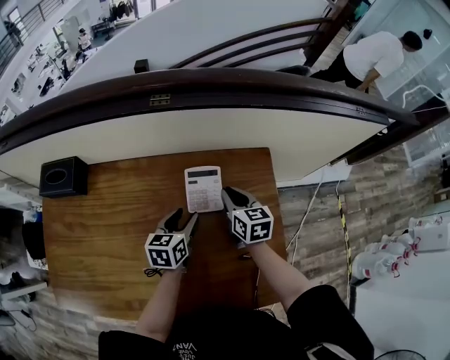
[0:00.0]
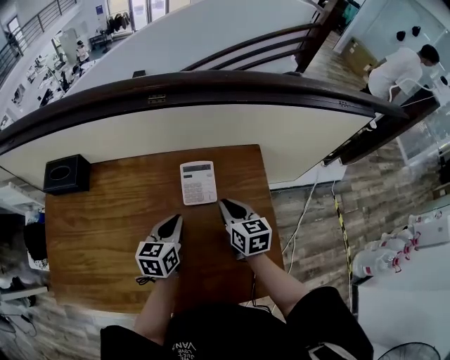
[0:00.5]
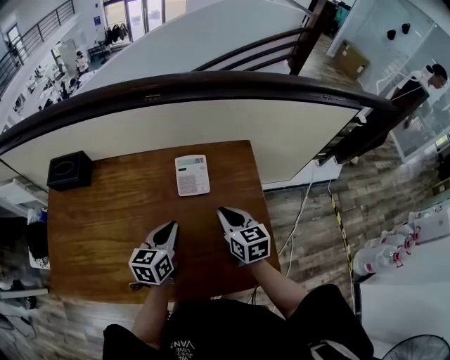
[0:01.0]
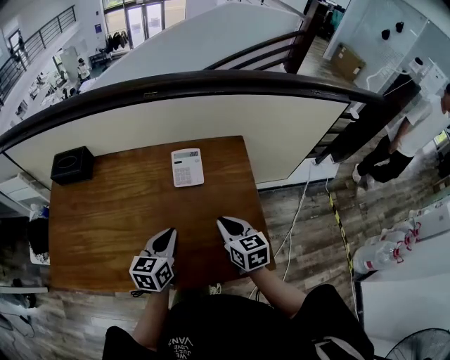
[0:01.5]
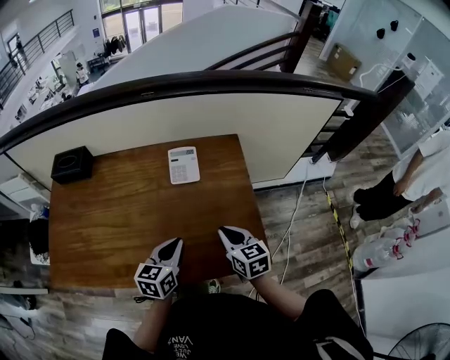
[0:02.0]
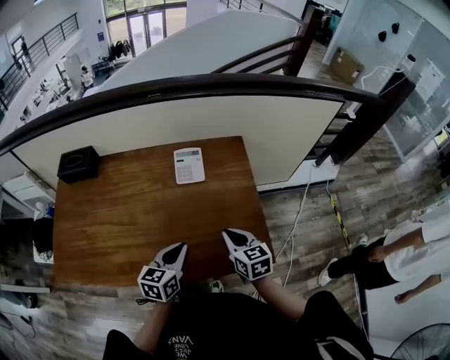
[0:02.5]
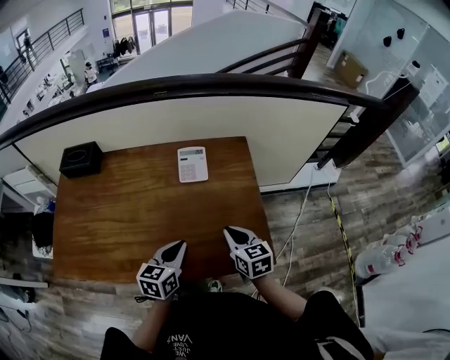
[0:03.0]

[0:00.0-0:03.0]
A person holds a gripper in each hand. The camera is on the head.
0:00.0 to 0:01.5: The left gripper moves backward and upward, approximately 20 cm, and closes up; the right gripper shifts some 20 cm backward.
0:01.5 to 0:03.0: Both grippers travel together backward, about 5 cm.

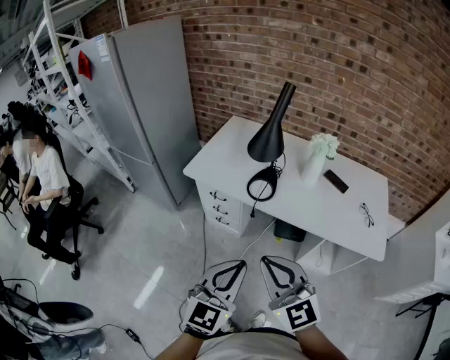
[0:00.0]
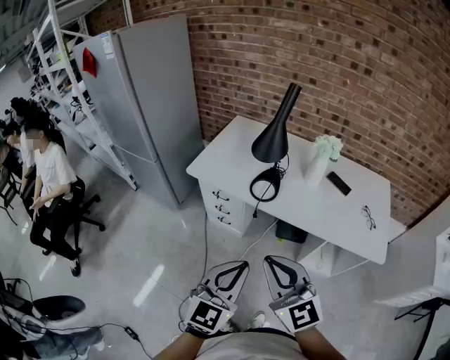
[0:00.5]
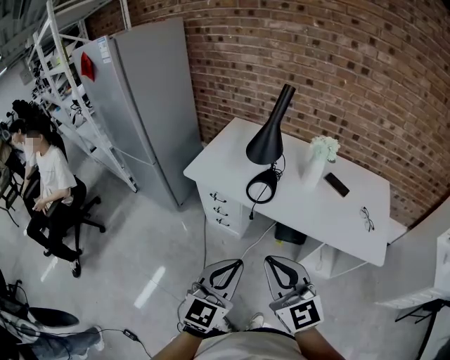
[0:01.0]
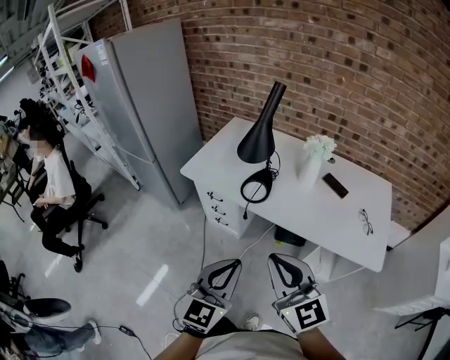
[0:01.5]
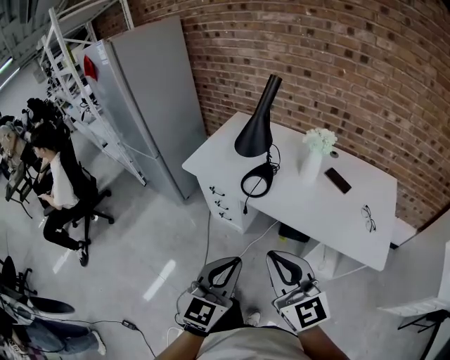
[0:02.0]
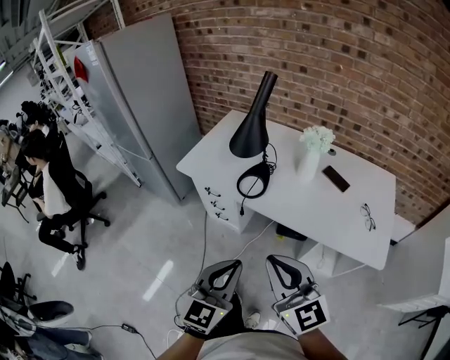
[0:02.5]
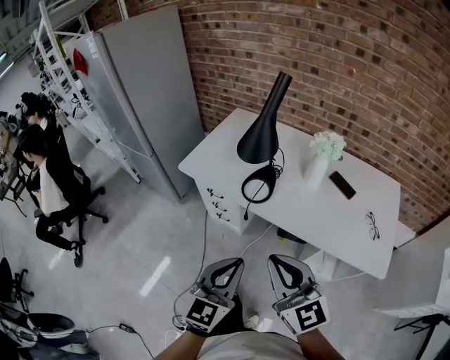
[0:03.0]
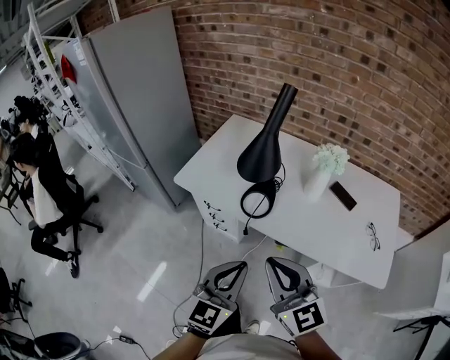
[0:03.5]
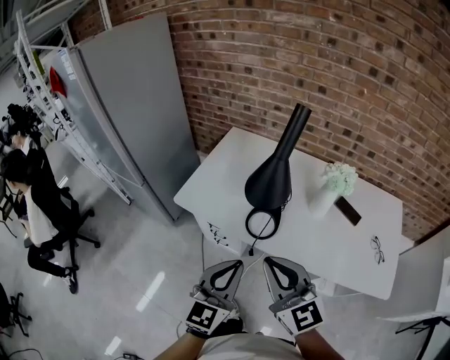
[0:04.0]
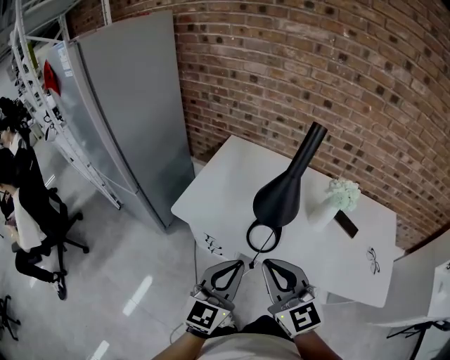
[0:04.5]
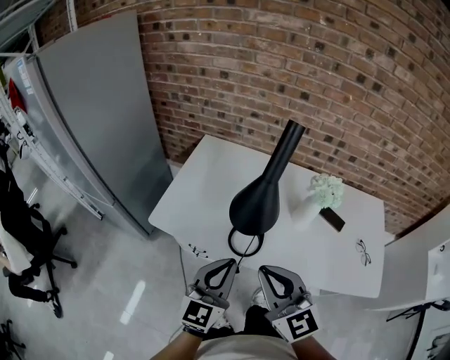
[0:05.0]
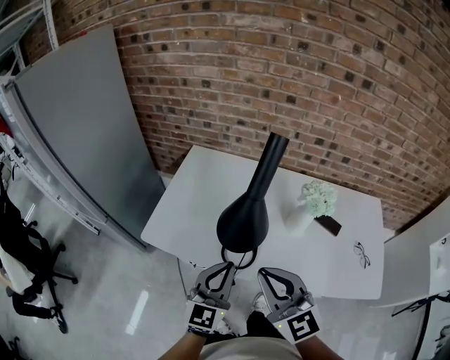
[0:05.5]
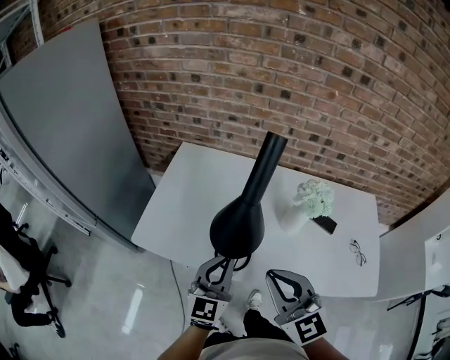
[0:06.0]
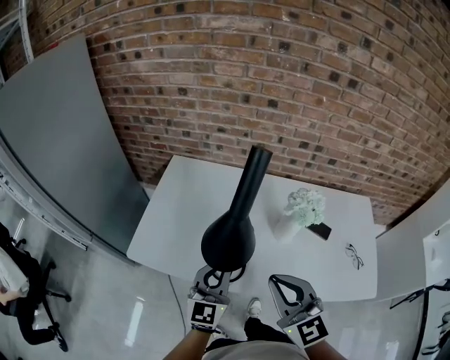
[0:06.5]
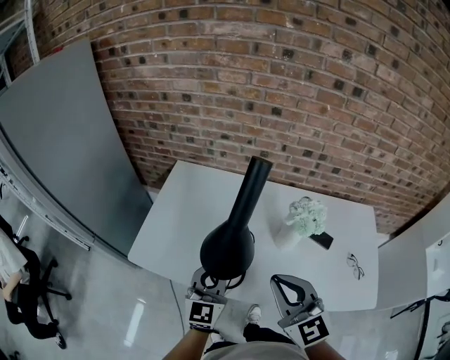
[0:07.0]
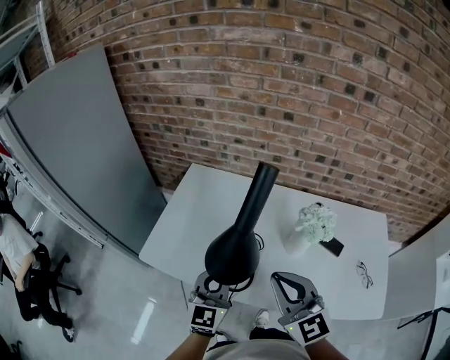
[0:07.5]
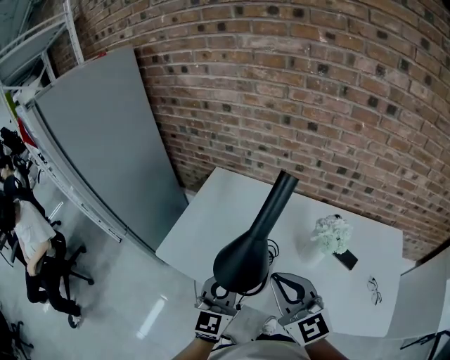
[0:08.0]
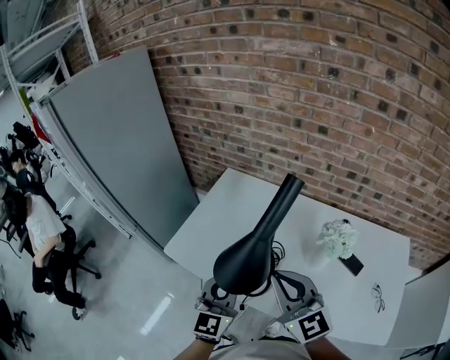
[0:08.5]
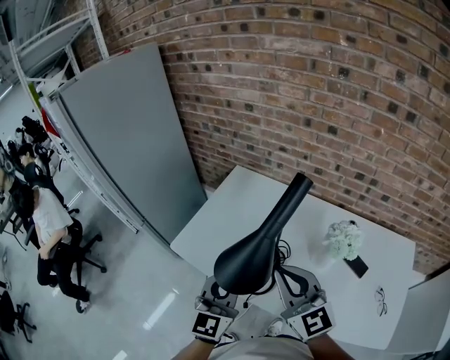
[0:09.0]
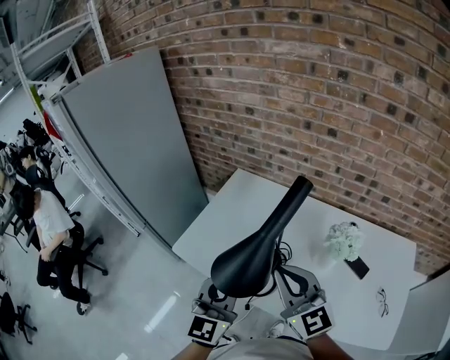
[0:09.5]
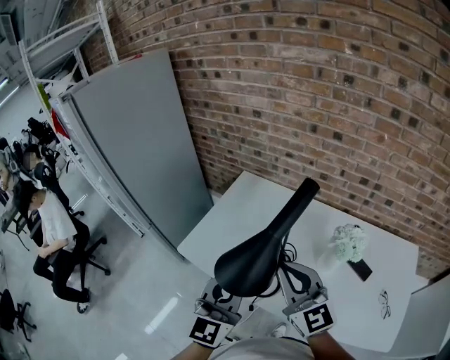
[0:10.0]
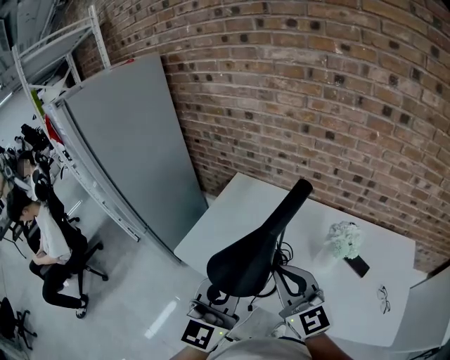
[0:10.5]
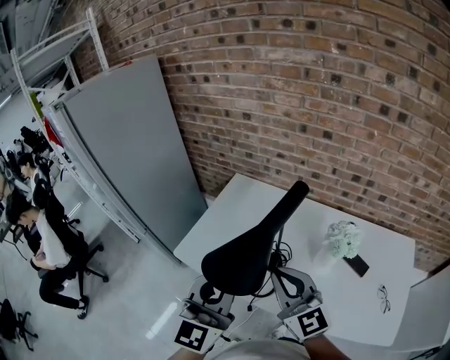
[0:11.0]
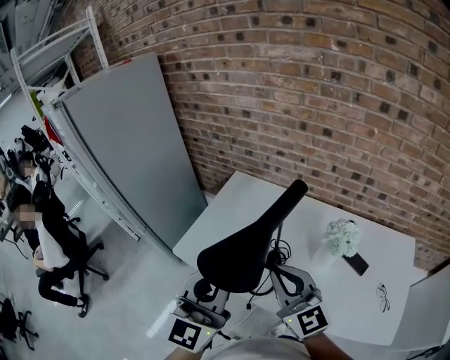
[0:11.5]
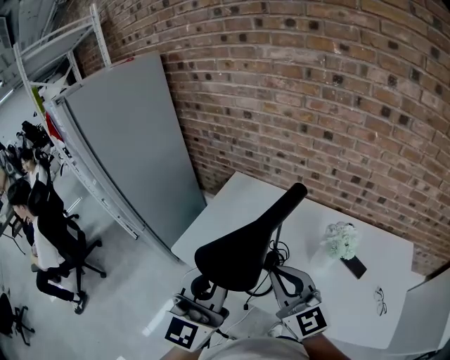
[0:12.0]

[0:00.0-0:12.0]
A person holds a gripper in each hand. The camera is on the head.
0:00.0 to 0:02.0: Both grippers move to the right, roughly 10 cm.
0:02.0 to 0:04.0: Both grippers move forward, some 20 cm.
0:04.0 to 0:06.0: The right gripper heads forward, covering roughly 10 cm. Meanwhile the left gripper moves forward, approximately 20 cm.
0:06.0 to 0:08.0: The right gripper heads forward, covering approximately 5 cm.
0:08.0 to 0:10.0: The left gripper shifts about 10 cm upward.
0:10.0 to 0:12.0: The left gripper shifts some 10 cm upward.

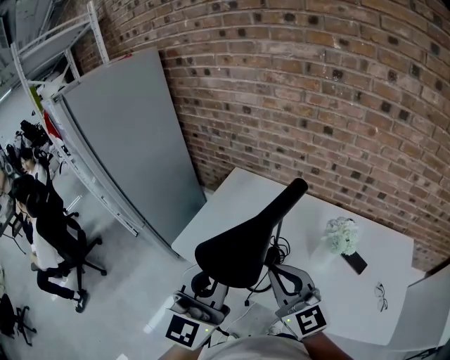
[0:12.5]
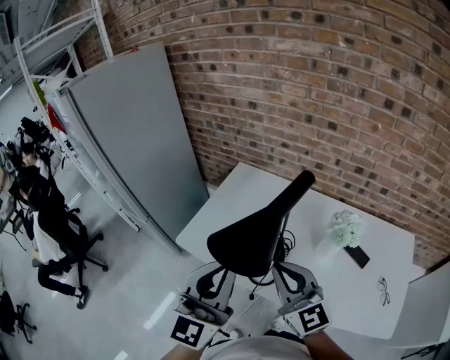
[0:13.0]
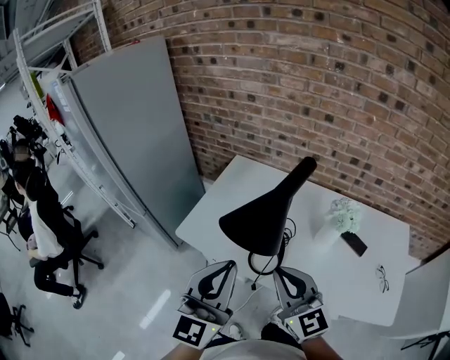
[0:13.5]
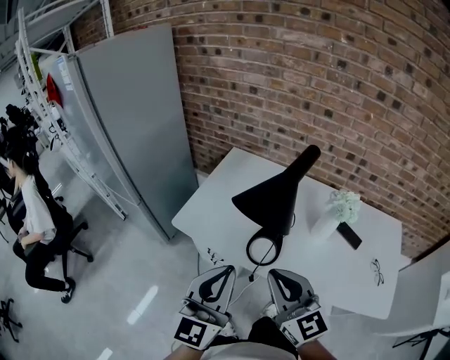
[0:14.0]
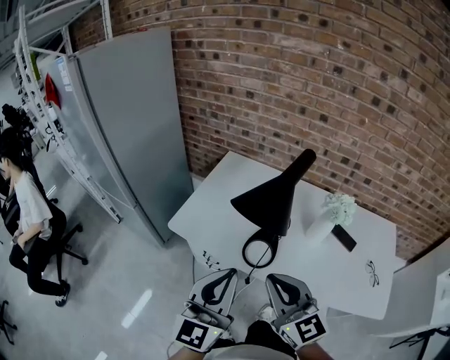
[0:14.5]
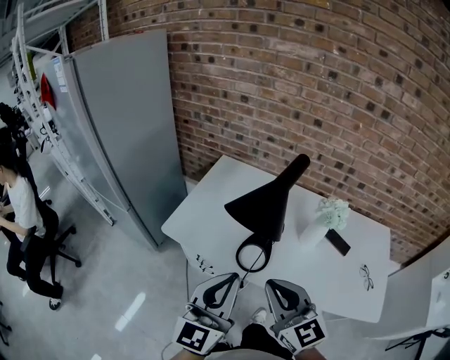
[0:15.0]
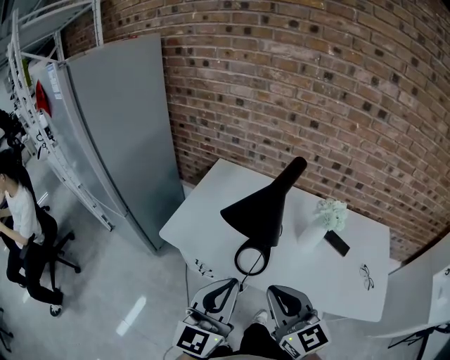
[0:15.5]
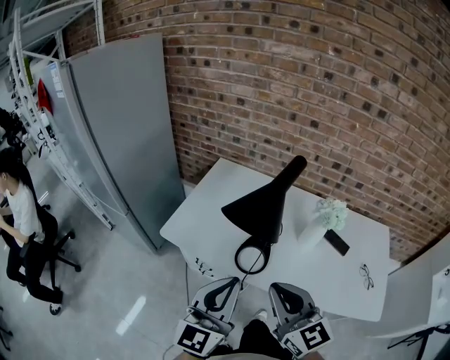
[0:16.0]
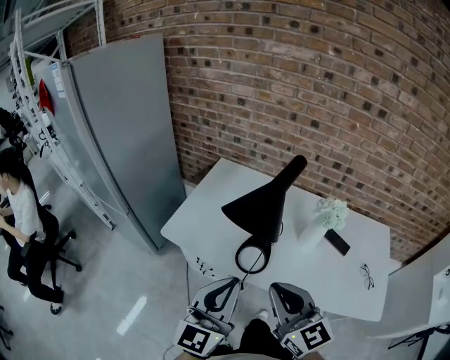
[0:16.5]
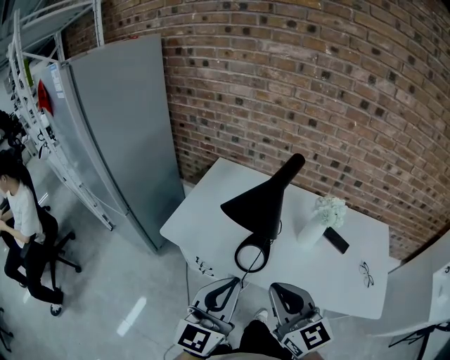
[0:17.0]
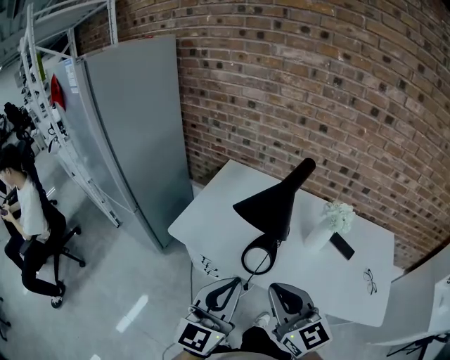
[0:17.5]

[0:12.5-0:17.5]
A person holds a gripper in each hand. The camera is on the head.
0:12.5 to 0:15.0: The left gripper shifts some 15 cm backward and downward. The right gripper heads backward, covering approximately 10 cm.
0:15.0 to 0:17.5: The grippers move only a little.

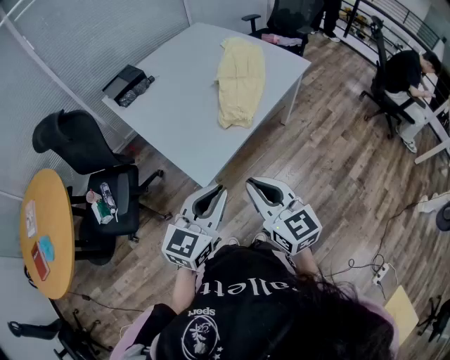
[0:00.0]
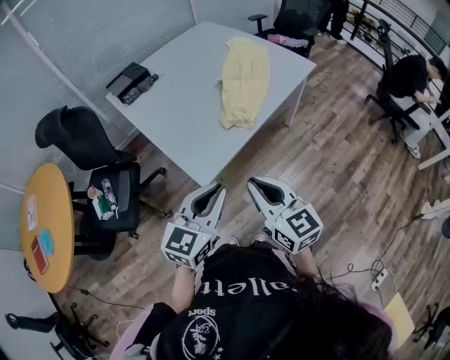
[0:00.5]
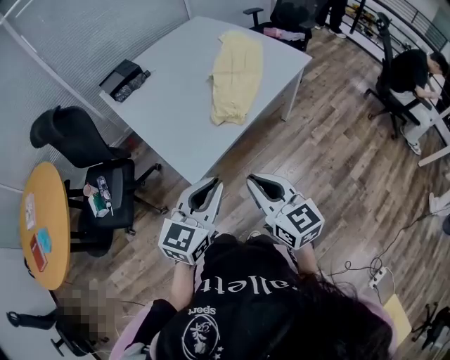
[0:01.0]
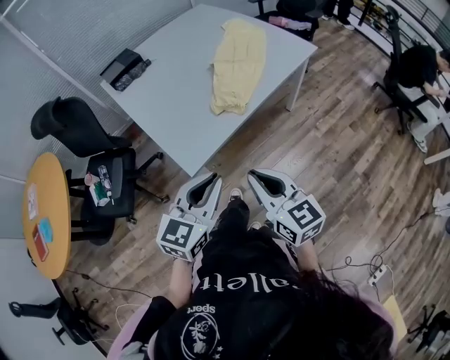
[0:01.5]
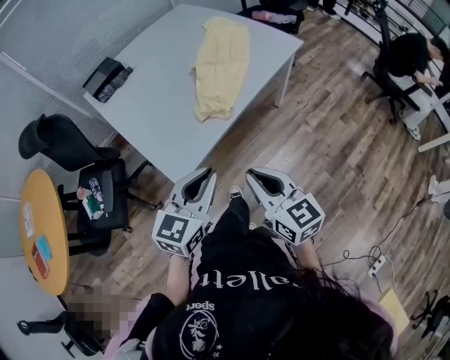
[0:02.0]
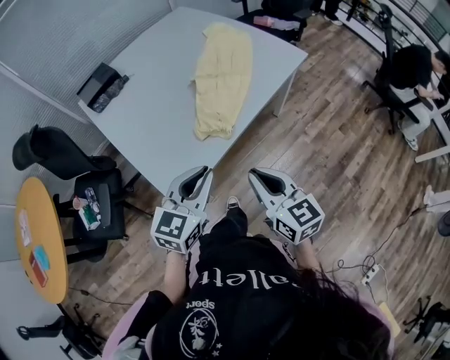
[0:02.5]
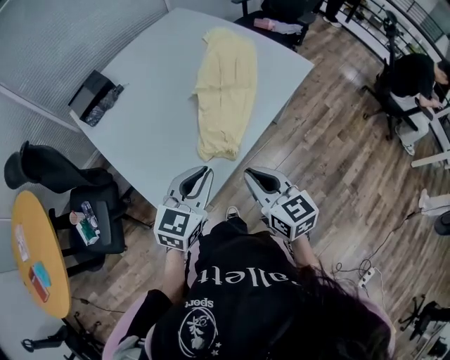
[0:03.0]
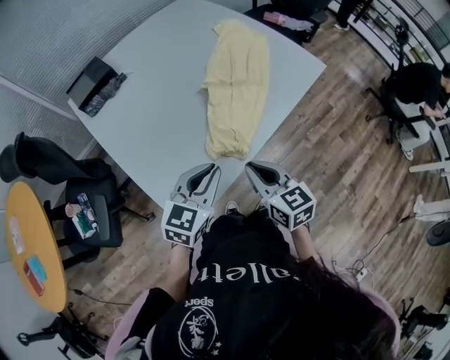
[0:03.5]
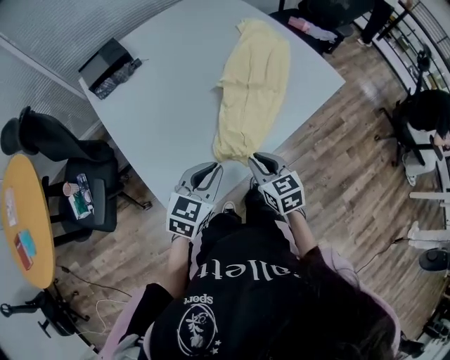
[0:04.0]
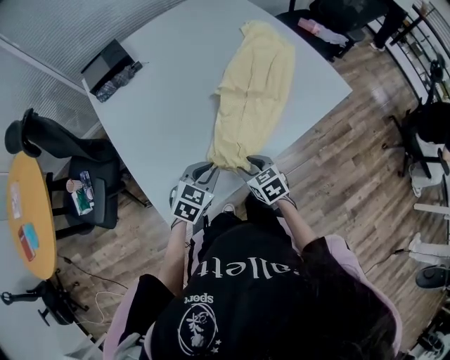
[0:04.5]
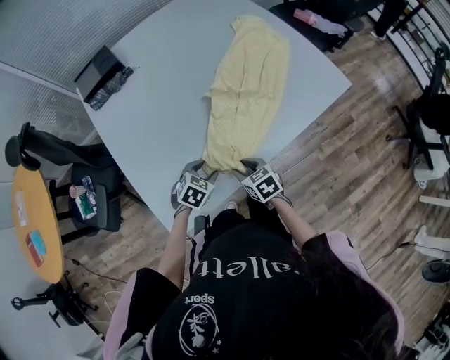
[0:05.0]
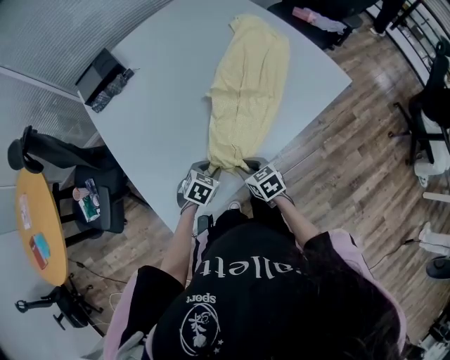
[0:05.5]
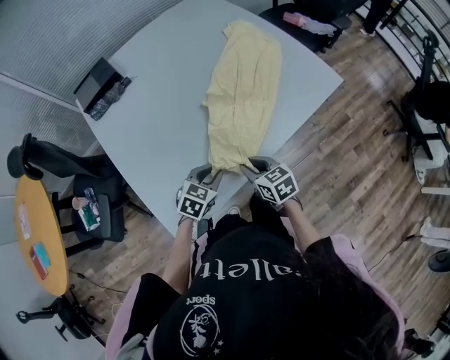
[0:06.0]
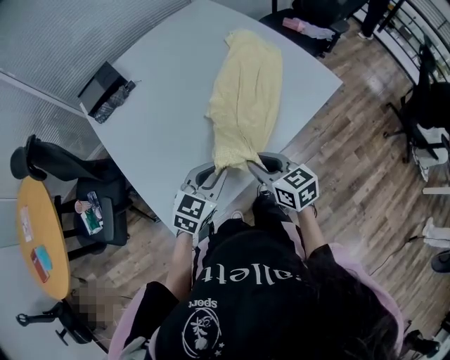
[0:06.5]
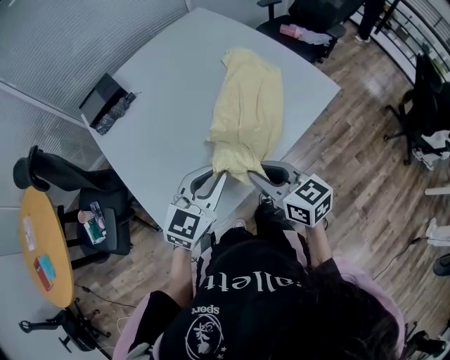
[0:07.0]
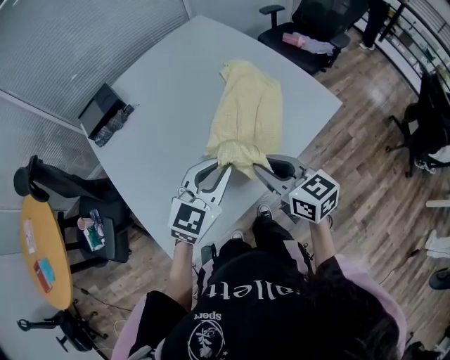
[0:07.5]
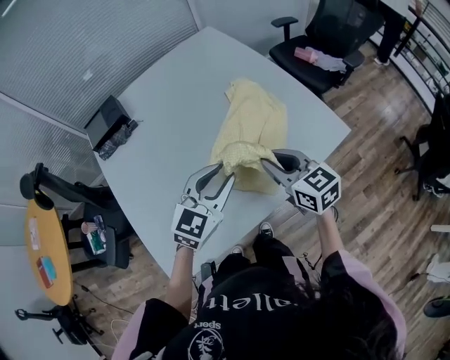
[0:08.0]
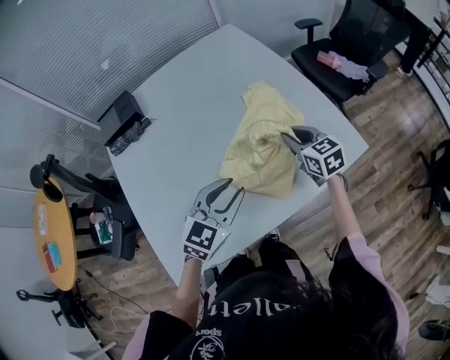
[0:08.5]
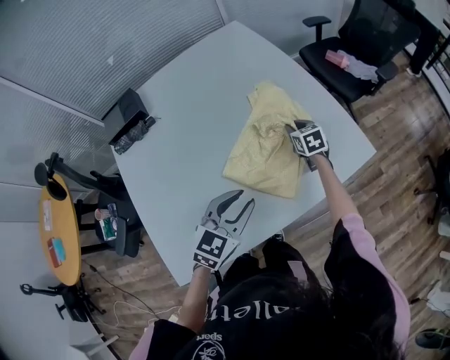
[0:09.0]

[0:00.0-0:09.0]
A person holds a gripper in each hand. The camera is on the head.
0:00.0 to 0:02.0: The left gripper travels to the right and forward by approximately 10 cm. The right gripper moves to the right and downward, approximately 10 cm.
0:02.0 to 0:04.5: Both grippers travel together forward and downward, roughly 35 cm. The left gripper changes its angle by about 30 degrees. Meanwhile the right gripper angles its fingers downward, by some 30 degrees, and opens up.
0:04.5 to 0:07.0: The grippers both shift upward by approximately 15 cm. The left gripper changes its angle by approximately 20 degrees, and opens, then closes again. Meanwhile the right gripper rotates approximately 30 degrees.
0:07.0 to 0:09.0: The left gripper heads forward and to the right, covering some 15 cm. The right gripper is displaced forward, downward and to the right by roughly 50 cm, and swivels about 30 degrees.
